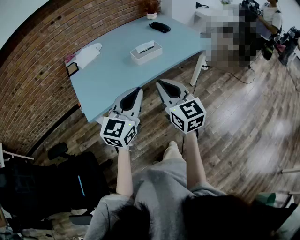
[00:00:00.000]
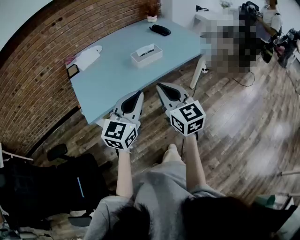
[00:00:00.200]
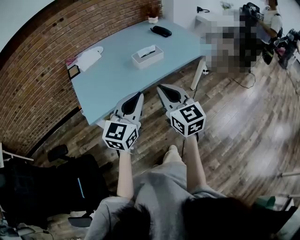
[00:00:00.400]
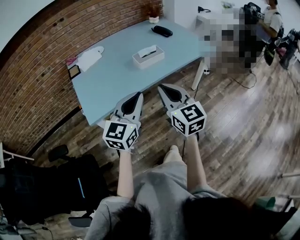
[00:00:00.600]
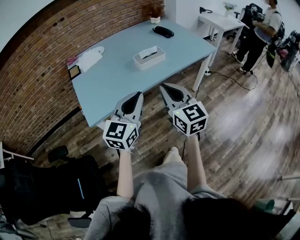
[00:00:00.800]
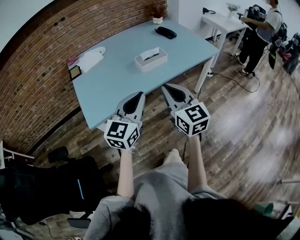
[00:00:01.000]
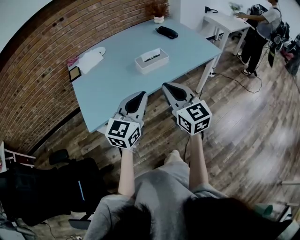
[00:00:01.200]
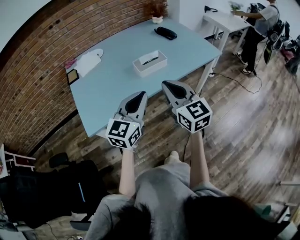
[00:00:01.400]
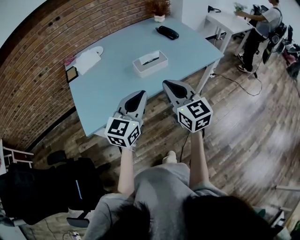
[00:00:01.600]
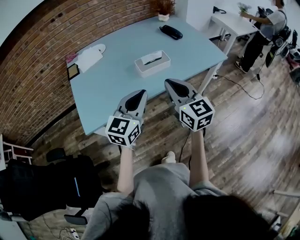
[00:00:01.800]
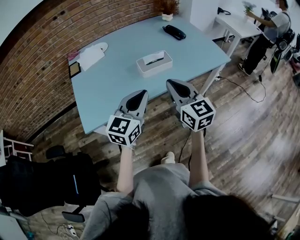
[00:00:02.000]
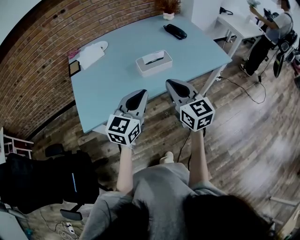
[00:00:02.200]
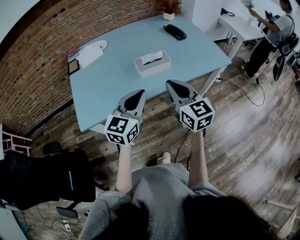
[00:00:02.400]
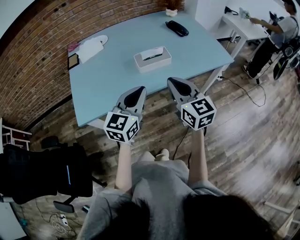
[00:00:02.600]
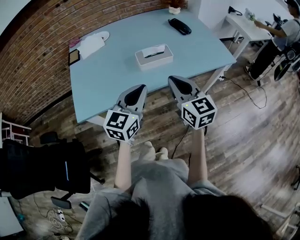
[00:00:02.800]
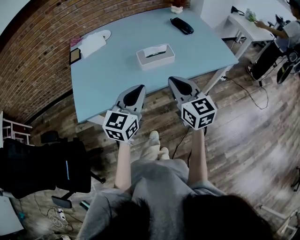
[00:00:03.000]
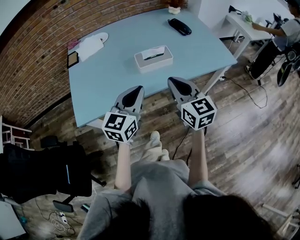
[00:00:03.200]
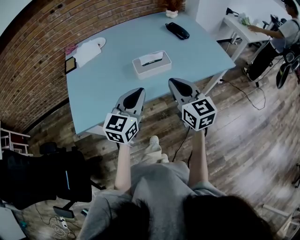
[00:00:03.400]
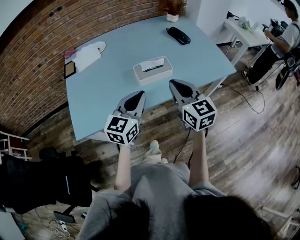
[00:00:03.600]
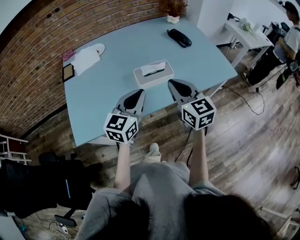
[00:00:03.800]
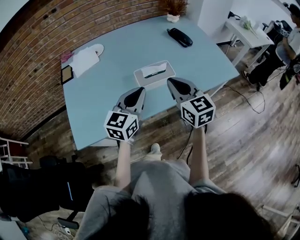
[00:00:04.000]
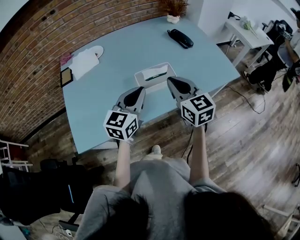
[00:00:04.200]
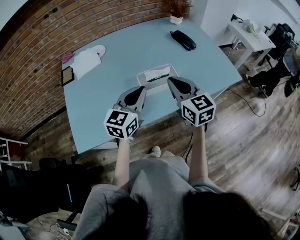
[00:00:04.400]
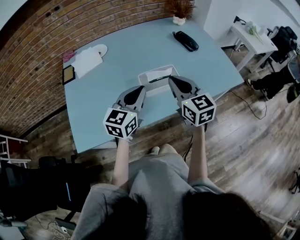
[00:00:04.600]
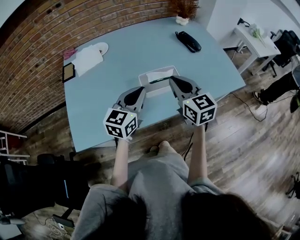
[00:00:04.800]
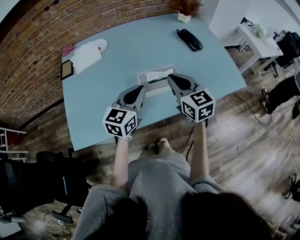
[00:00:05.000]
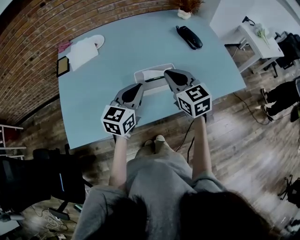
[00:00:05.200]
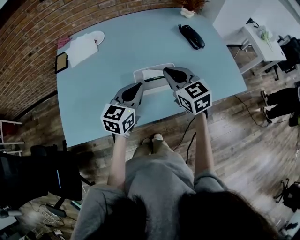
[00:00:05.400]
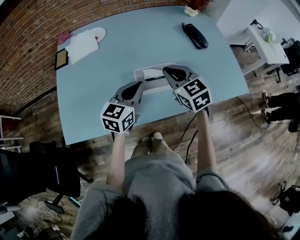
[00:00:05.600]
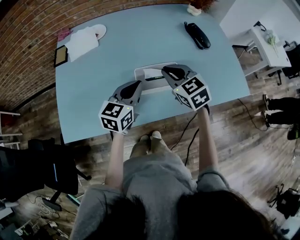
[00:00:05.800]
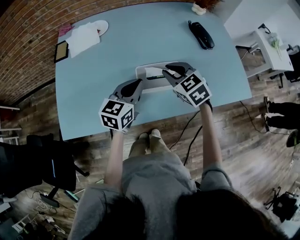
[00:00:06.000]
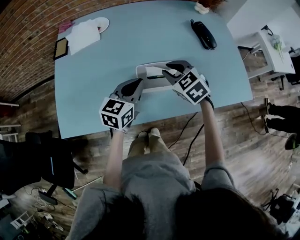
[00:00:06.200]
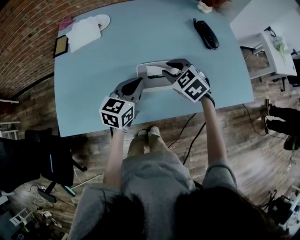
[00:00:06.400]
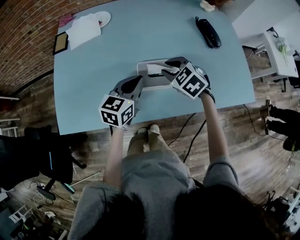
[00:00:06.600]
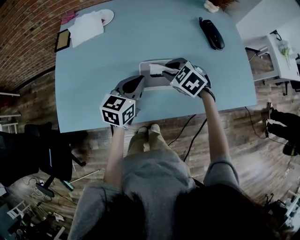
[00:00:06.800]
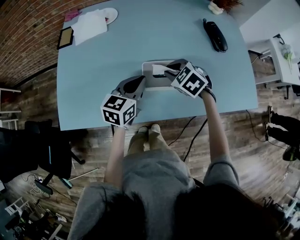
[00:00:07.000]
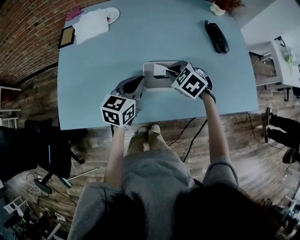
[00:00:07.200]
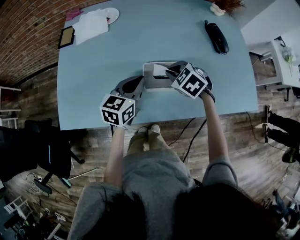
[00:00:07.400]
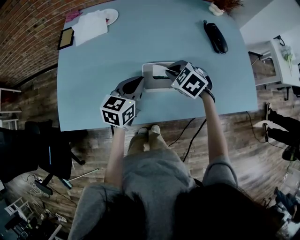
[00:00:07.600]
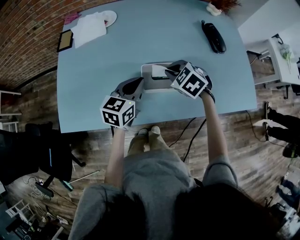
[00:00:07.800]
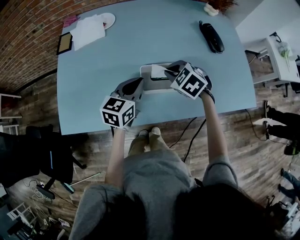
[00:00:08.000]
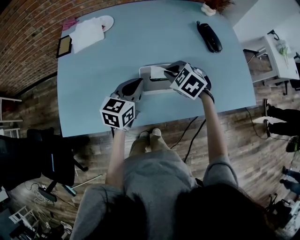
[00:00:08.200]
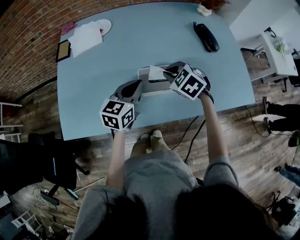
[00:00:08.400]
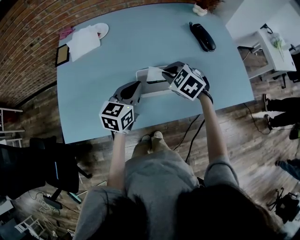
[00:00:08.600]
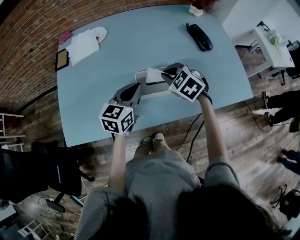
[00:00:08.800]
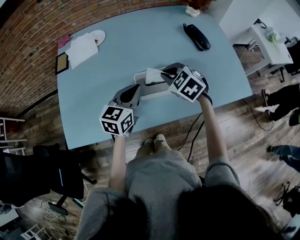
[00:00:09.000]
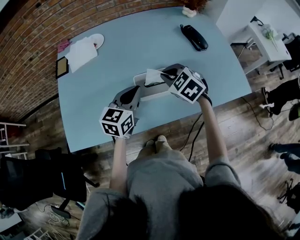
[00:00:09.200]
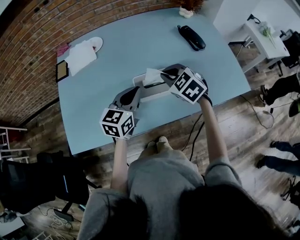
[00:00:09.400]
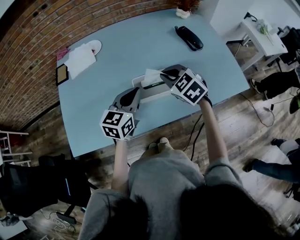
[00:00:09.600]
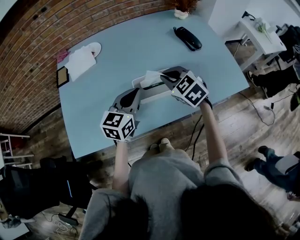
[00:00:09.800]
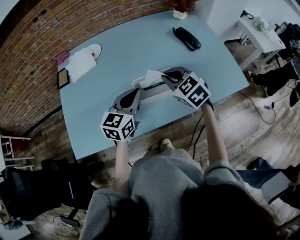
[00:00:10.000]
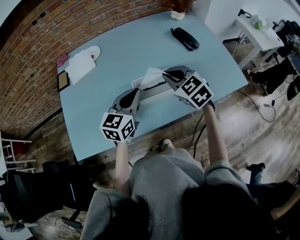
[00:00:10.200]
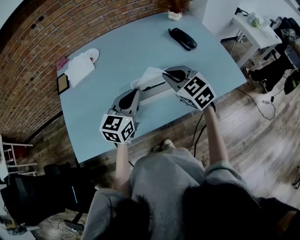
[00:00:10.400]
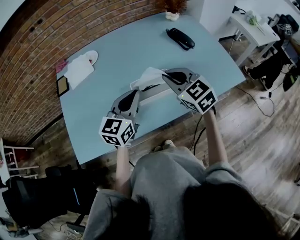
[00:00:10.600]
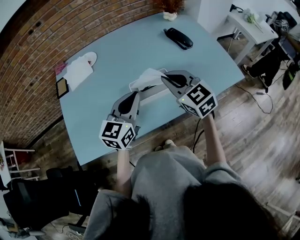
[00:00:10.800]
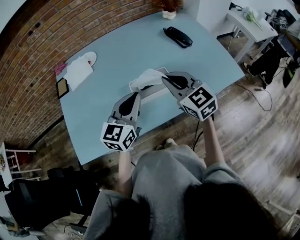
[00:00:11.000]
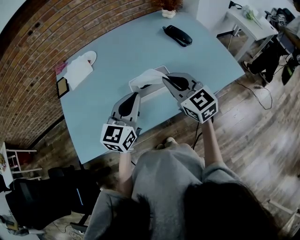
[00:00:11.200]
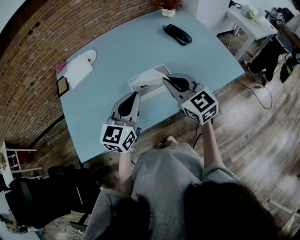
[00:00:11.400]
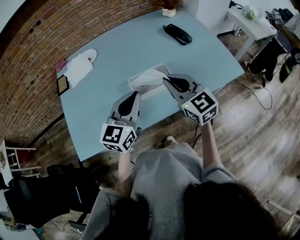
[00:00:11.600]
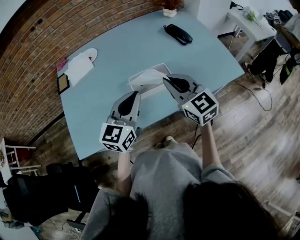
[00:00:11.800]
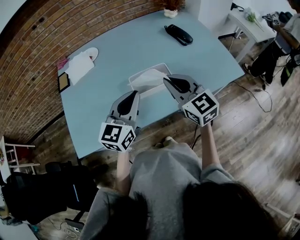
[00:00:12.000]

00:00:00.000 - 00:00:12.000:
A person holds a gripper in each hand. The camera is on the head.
00:00:00.000 - 00:00:01.600: The two grippers go some 15 cm forward.
00:00:01.600 - 00:00:03.000: The left gripper moves approximately 5 cm. The right gripper heads forward, covering about 5 cm.
00:00:03.000 - 00:00:04.400: Both grippers move forward, approximately 15 cm.
00:00:04.400 - 00:00:06.000: The two grippers go some 15 cm forward and downward. The right gripper turns by about 40 degrees.
00:00:06.000 - 00:00:07.600: The right gripper shifts approximately 5 cm downward, and turns by approximately 20 degrees.
00:00:07.600 - 00:00:09.000: The right gripper heads upward, covering about 5 cm.
00:00:09.000 - 00:00:10.400: The right gripper goes approximately 10 cm upward, and swivels roughly 20 degrees. The left gripper shifts by approximately 5 cm.
00:00:10.400 - 00:00:12.000: Both grippers travel together backward, some 5 cm. The right gripper changes its angle by some 20 degrees.

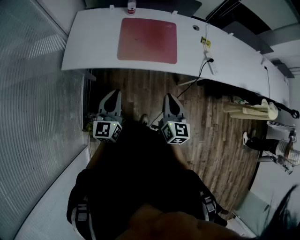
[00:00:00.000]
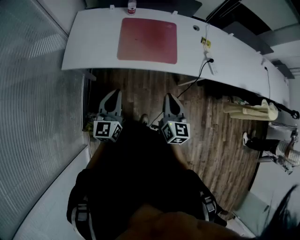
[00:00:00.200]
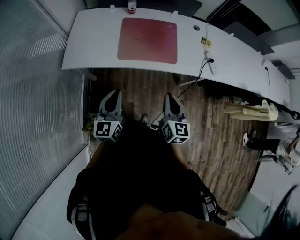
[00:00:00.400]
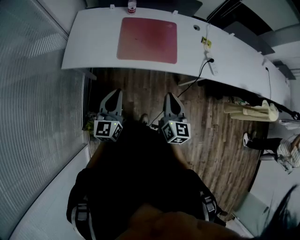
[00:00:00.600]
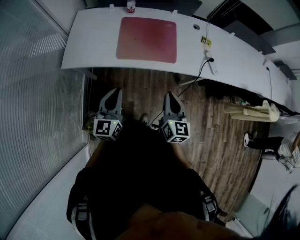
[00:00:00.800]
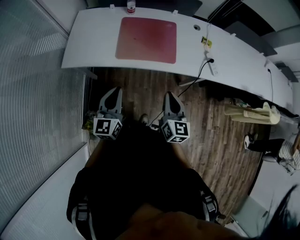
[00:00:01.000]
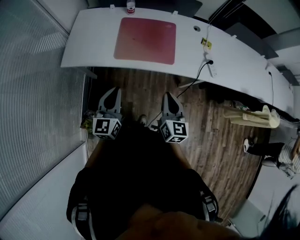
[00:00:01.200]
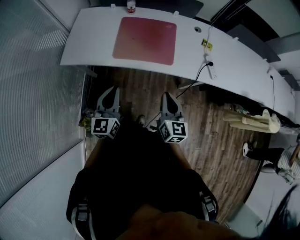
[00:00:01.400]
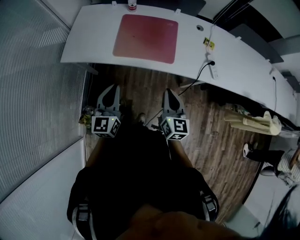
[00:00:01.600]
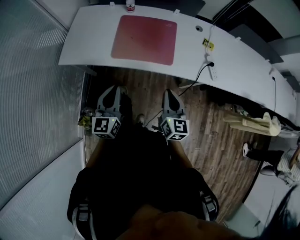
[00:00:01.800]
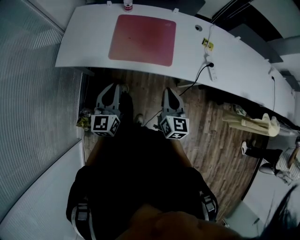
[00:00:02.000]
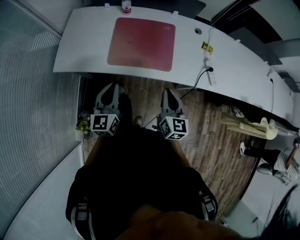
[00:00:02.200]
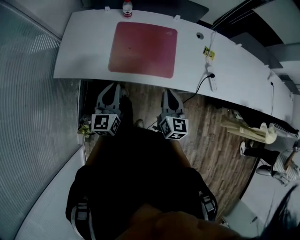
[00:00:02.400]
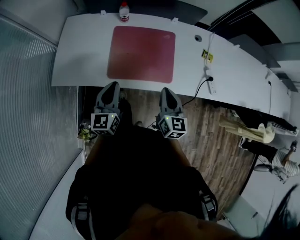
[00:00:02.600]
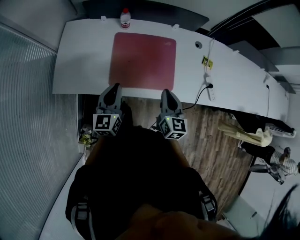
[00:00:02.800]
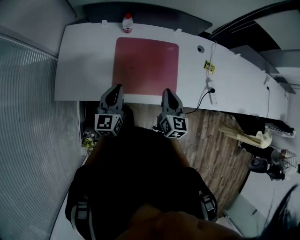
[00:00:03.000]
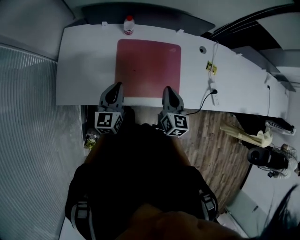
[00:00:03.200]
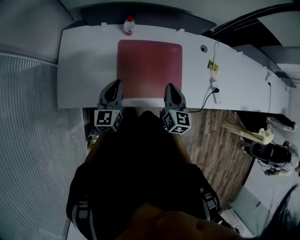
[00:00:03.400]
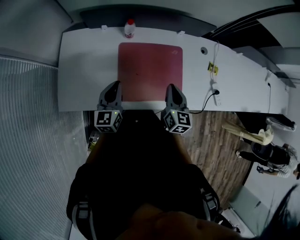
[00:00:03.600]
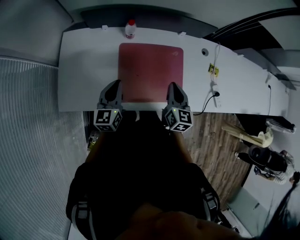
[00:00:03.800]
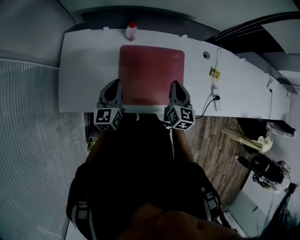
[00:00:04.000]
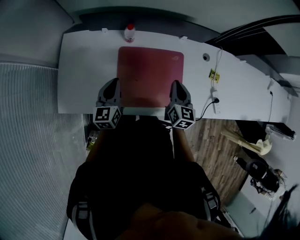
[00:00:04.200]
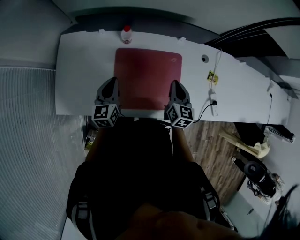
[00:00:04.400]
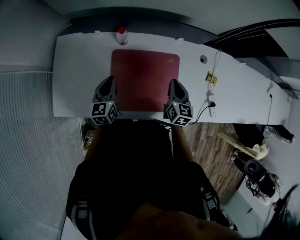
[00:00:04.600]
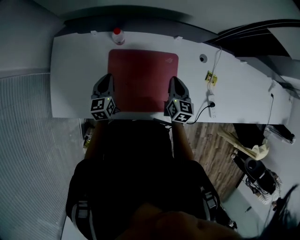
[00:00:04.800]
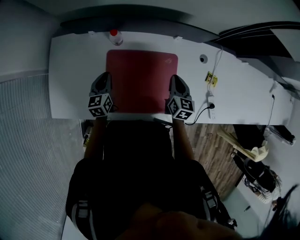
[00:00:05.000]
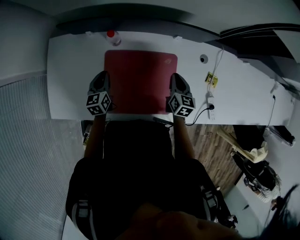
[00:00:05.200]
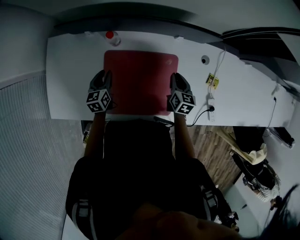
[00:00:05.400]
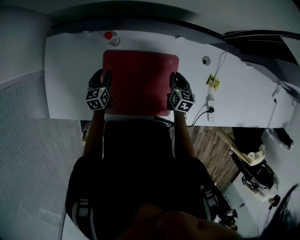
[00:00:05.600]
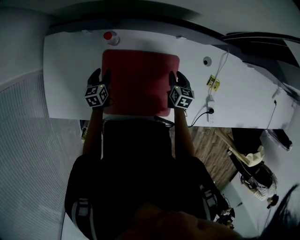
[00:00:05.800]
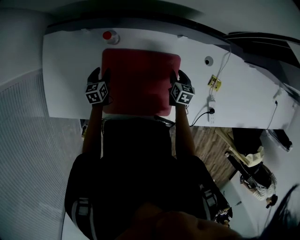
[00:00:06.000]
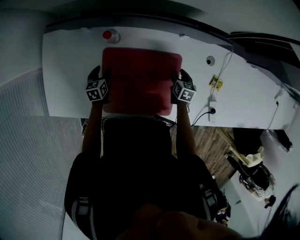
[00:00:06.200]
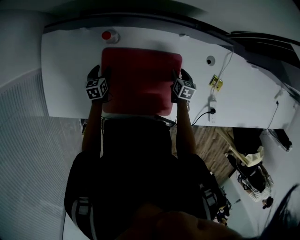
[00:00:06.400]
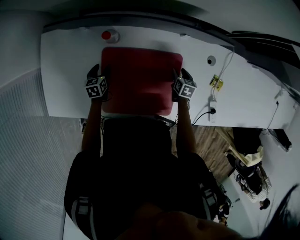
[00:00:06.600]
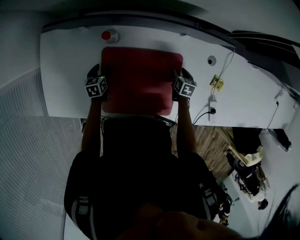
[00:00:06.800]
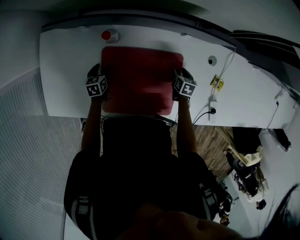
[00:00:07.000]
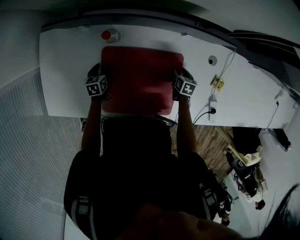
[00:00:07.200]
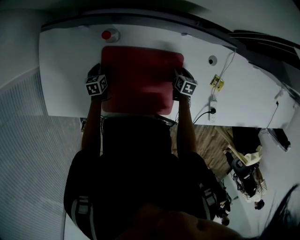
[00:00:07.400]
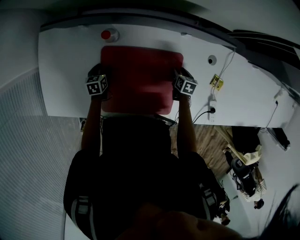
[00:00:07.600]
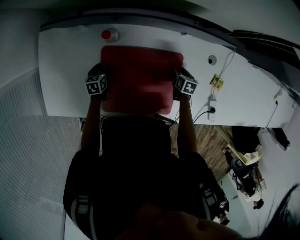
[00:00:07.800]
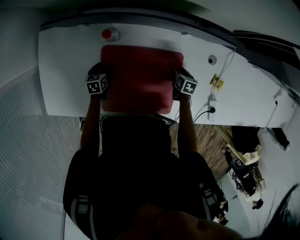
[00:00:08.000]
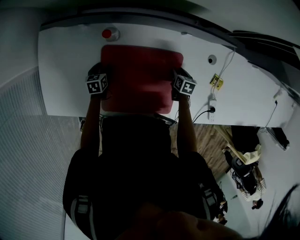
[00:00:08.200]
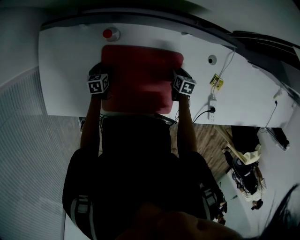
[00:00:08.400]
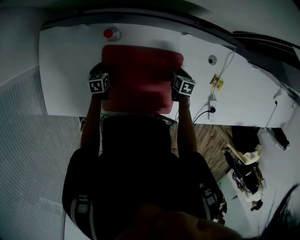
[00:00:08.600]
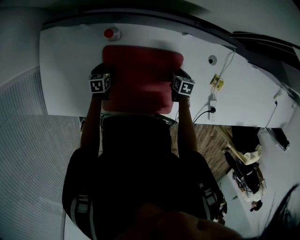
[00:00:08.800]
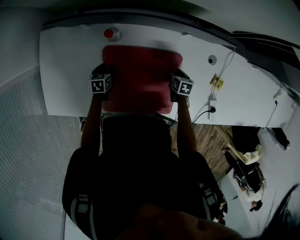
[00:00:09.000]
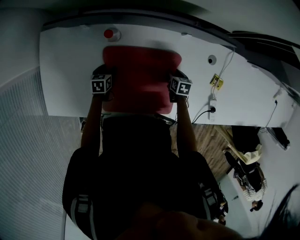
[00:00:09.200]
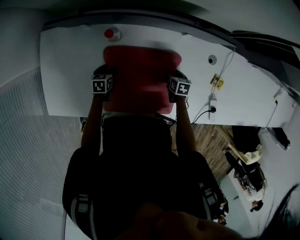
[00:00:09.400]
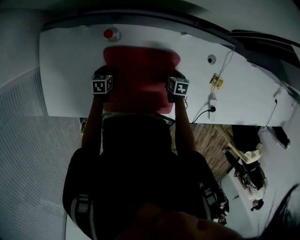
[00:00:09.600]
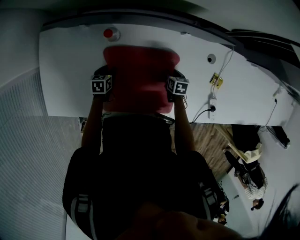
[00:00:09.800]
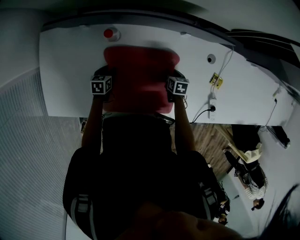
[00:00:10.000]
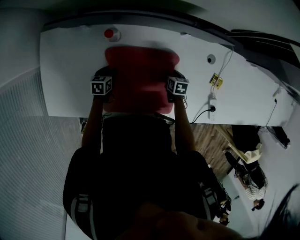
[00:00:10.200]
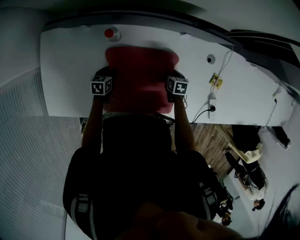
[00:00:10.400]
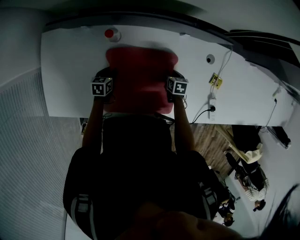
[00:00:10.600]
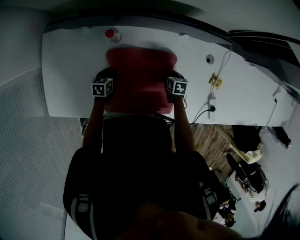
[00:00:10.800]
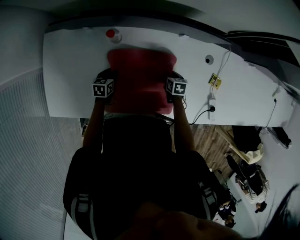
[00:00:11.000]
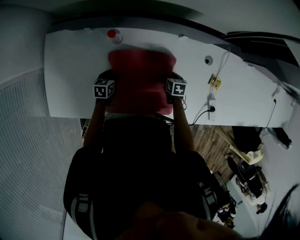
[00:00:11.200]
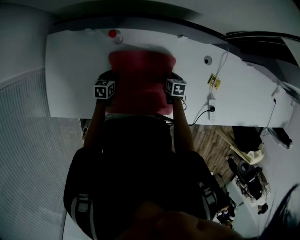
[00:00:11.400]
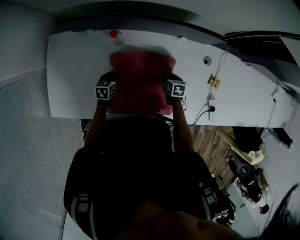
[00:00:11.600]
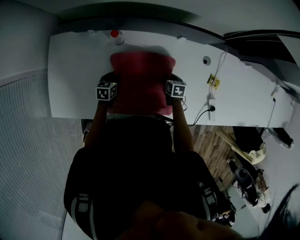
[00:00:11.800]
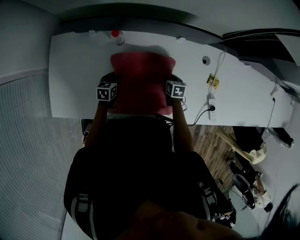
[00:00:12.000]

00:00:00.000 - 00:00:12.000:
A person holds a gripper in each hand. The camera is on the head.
00:00:00.000 - 00:00:01.600: The grippers both shift to the right by about 10 cm.
00:00:01.600 - 00:00:03.000: Both grippers move forward, roughly 30 cm.
00:00:03.000 - 00:00:04.400: Both grippers move forward, approximately 15 cm.
00:00:04.400 - 00:00:06.000: The right gripper goes about 25 cm downward, forward and to the right, turns by some 30 degrees, and opens up. Meanwhile the left gripper goes about 25 cm downward and forward, rotates roughly 30 degrees, and opens.
00:00:06.000 - 00:00:07.600: Both grippers travel together downward, about 5 cm.
00:00:07.600 - 00:00:09.000: There are only small adjustments of the grippers.
00:00:09.000 - 00:00:10.400: The left gripper closes its fingers.
00:00:10.400 - 00:00:12.000: Both grippers travel together upward, approximately 5 cm.
